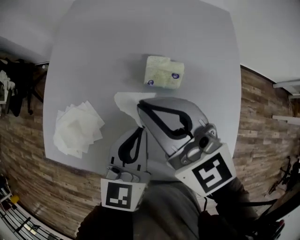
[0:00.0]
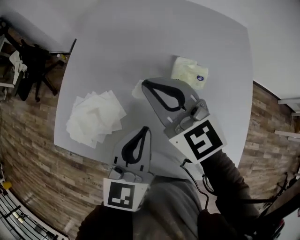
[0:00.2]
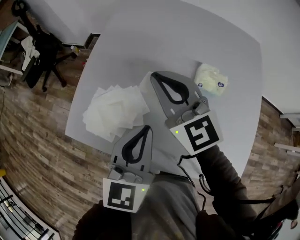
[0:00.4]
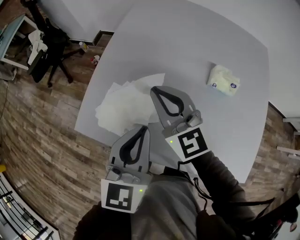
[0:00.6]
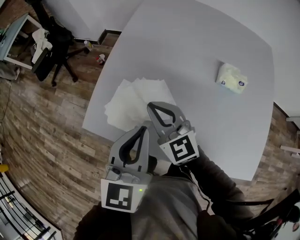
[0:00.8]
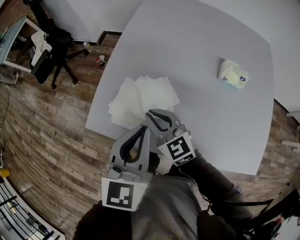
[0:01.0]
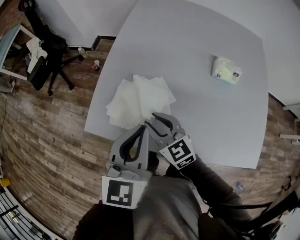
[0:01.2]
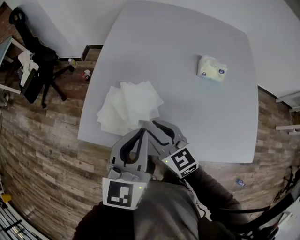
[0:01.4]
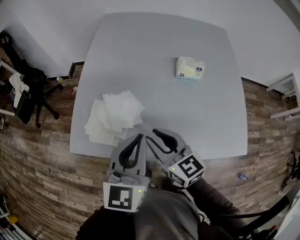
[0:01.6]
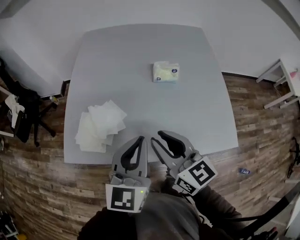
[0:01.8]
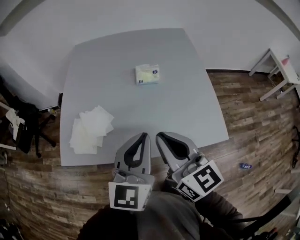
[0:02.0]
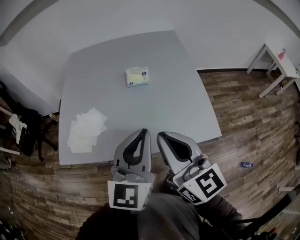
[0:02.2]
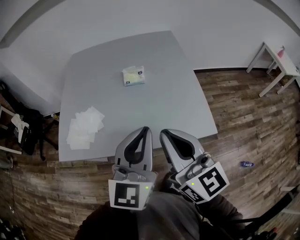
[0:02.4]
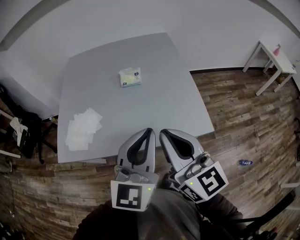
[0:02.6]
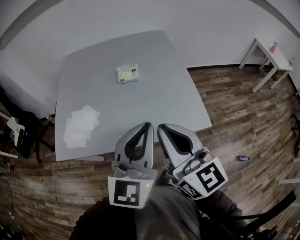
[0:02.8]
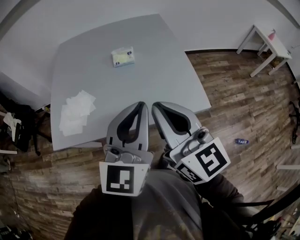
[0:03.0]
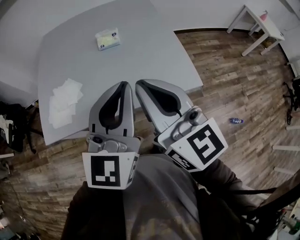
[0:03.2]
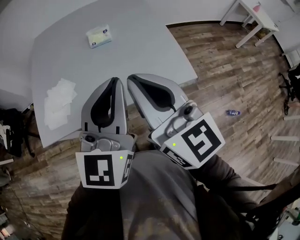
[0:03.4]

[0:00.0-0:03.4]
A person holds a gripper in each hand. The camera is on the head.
0.0 to 1.6 s: The right gripper is displaced to the left, backward and downward by approximately 30 cm, swivels about 30 degrees, and opens. Meanwhile the left gripper moves to the left, about 25 cm.
1.6 to 3.4 s: The two grippers go approximately 35 cm to the right, upward and backward. The left gripper changes its angle by about 20 degrees. The right gripper rotates about 30 degrees, and closes its fingers.

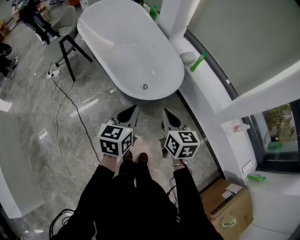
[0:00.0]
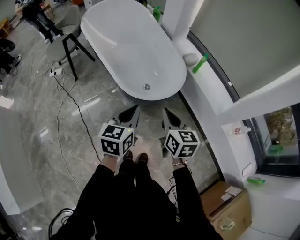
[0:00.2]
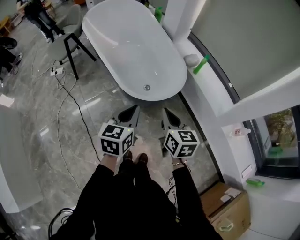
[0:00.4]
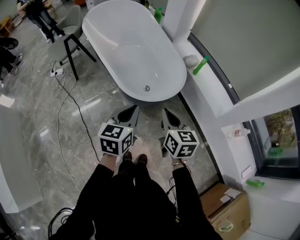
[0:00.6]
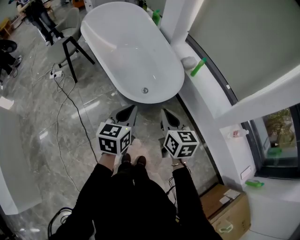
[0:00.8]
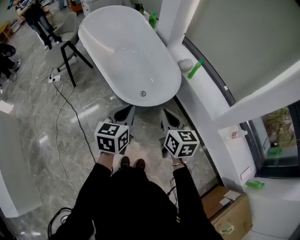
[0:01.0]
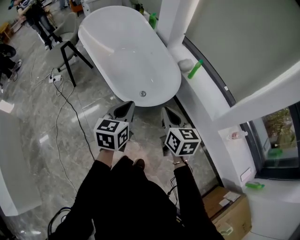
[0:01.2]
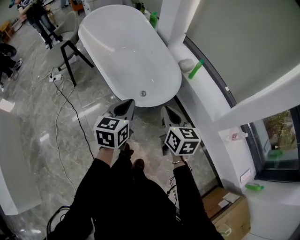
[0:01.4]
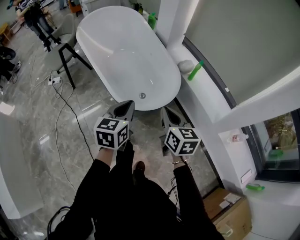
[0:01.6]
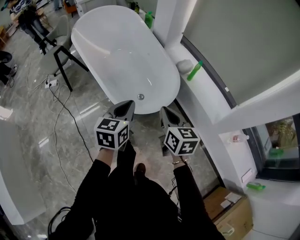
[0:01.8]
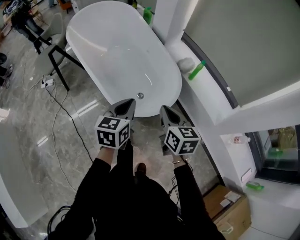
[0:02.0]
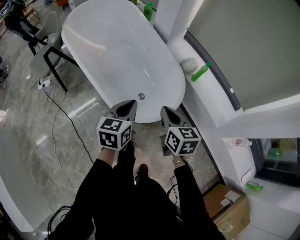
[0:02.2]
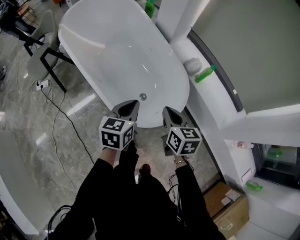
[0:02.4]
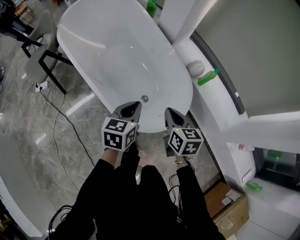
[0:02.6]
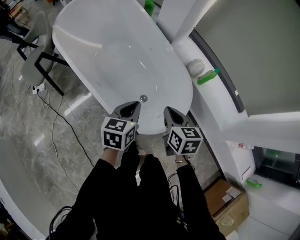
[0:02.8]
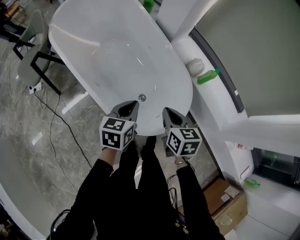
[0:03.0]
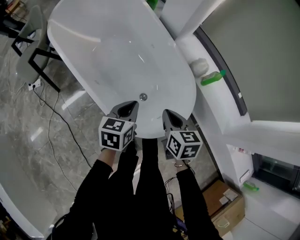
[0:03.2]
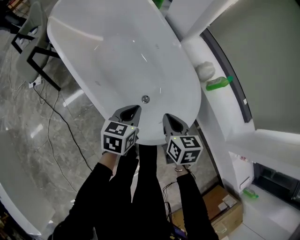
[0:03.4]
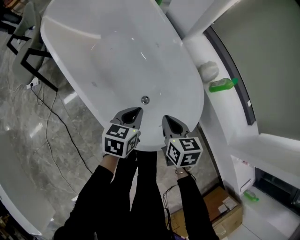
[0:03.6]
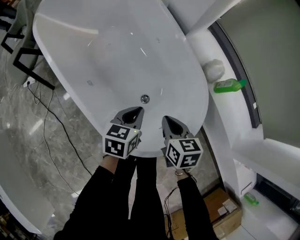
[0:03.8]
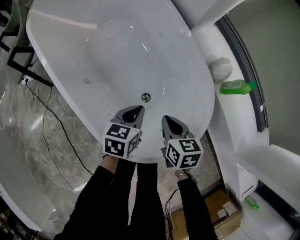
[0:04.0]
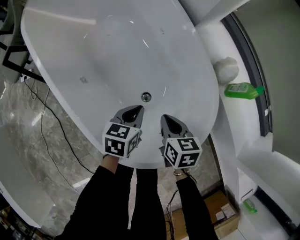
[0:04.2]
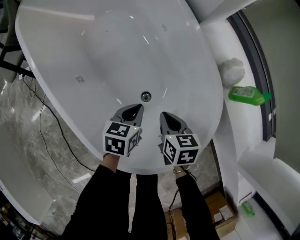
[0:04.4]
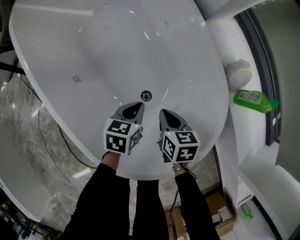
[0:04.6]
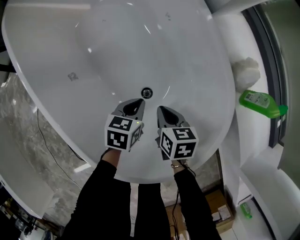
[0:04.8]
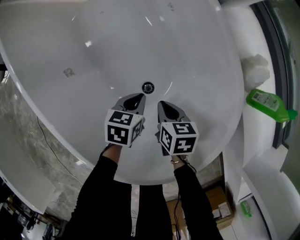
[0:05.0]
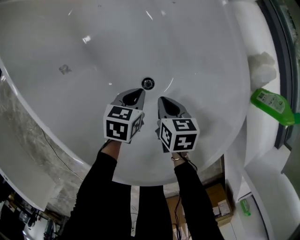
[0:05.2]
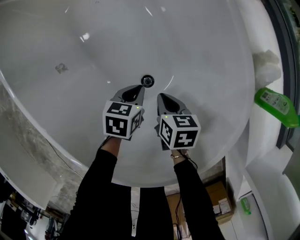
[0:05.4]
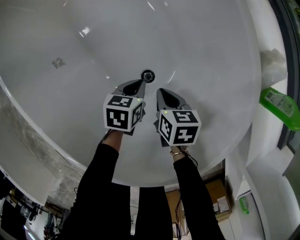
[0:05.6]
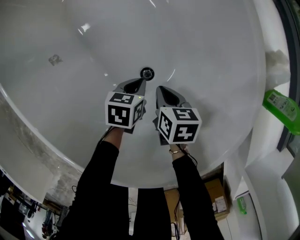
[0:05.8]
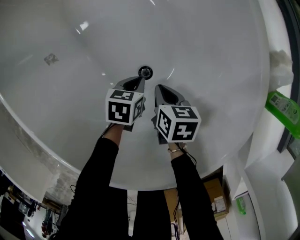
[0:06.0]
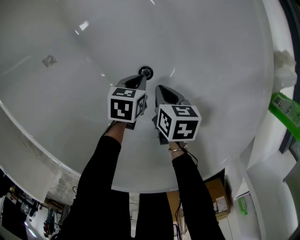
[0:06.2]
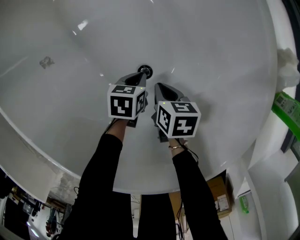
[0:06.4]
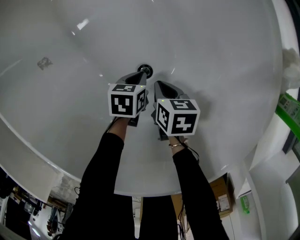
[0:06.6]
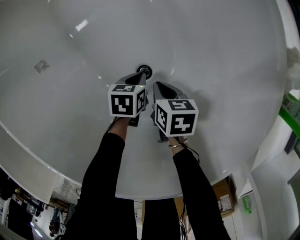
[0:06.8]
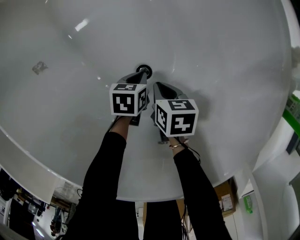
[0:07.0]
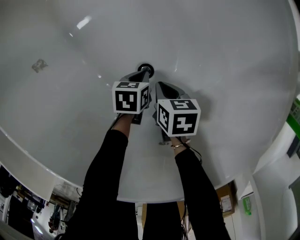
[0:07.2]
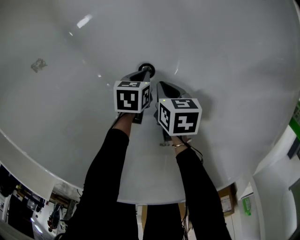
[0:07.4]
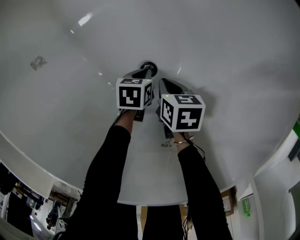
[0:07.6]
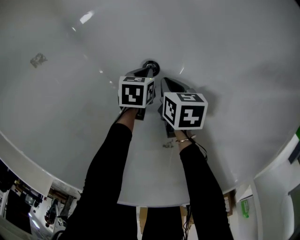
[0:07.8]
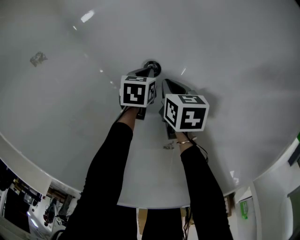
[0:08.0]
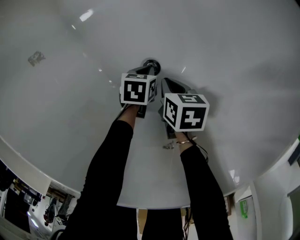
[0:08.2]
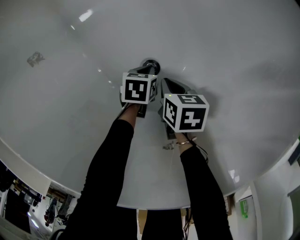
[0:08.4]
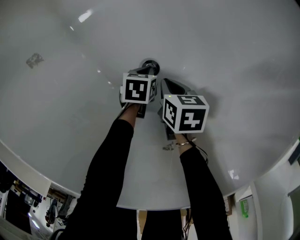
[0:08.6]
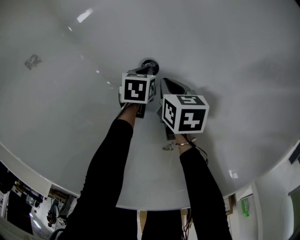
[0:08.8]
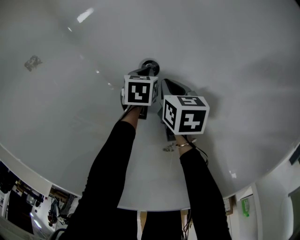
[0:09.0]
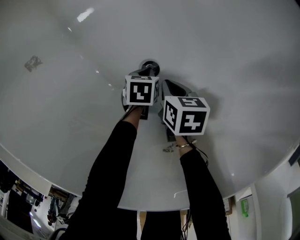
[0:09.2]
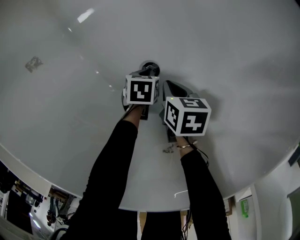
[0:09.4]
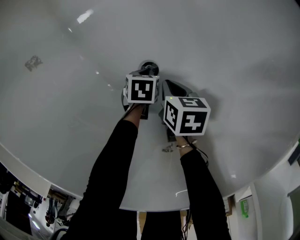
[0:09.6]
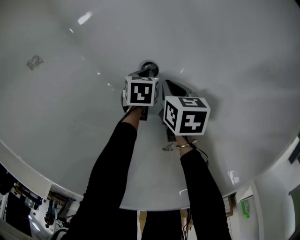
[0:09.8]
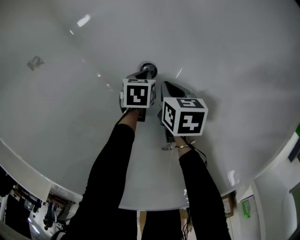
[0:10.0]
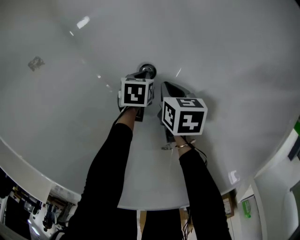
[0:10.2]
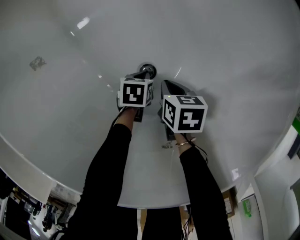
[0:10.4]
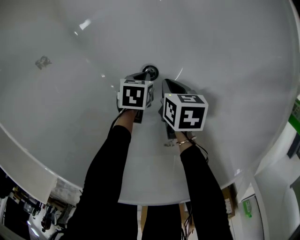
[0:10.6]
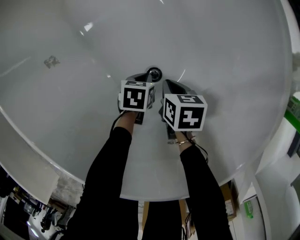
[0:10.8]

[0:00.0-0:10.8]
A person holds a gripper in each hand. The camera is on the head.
0.0 to 1.6 s: The grippers both shift forward by about 5 cm.
1.6 to 3.0 s: The left gripper moves forward and downward, approximately 25 cm. Meanwhile the right gripper is displaced forward, downward and to the left by about 25 cm.
3.0 to 4.6 s: Both grippers travel together downward and forward, some 35 cm. The right gripper turns by approximately 20 degrees.
4.6 to 6.2 s: Both grippers move downward, about 20 cm.
6.2 to 7.8 s: The two grippers go approximately 10 cm downward.
7.8 to 9.2 s: There are only small adjustments of the grippers.
9.2 to 10.8 s: The left gripper moves upward, approximately 5 cm; the right gripper ends up about 5 cm from where it was.

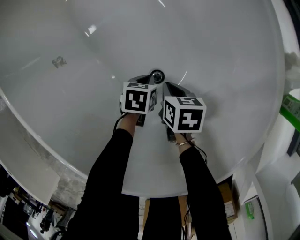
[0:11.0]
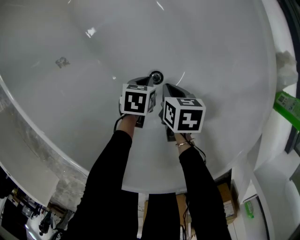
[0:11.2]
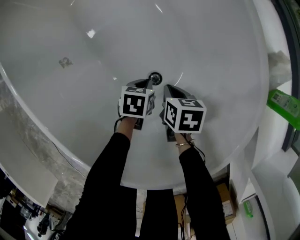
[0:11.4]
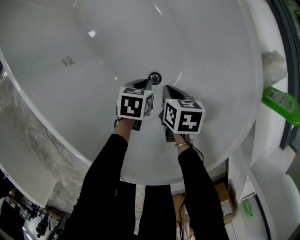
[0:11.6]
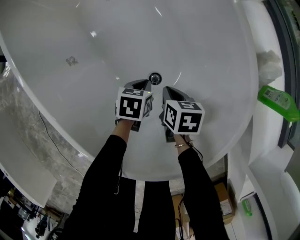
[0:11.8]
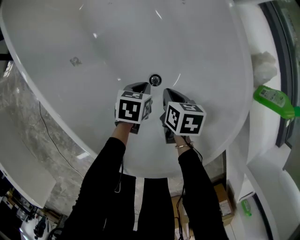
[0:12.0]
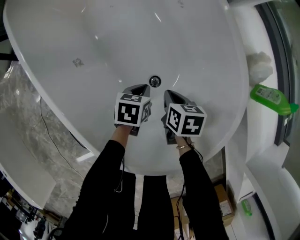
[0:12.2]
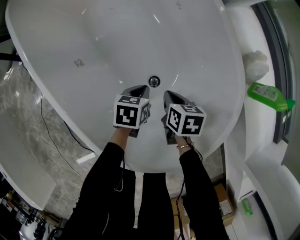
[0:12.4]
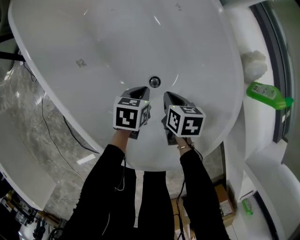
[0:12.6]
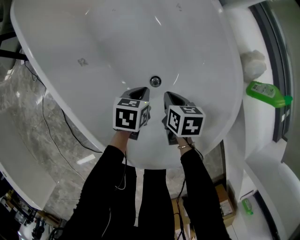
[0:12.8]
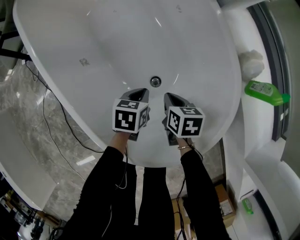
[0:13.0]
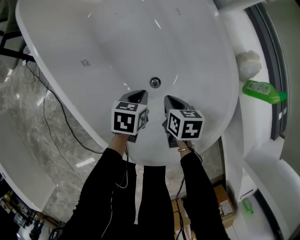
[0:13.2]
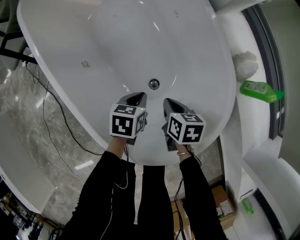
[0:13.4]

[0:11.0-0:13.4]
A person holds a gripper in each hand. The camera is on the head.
11.0 to 12.2 s: The two grippers go some 15 cm upward.
12.2 to 13.4 s: The grippers both shift upward by roughly 5 cm.

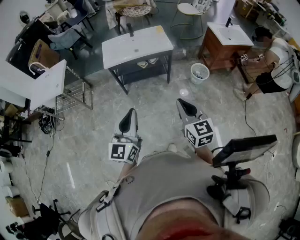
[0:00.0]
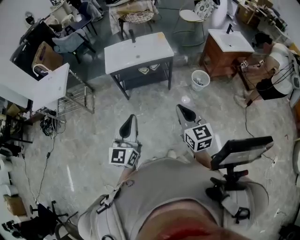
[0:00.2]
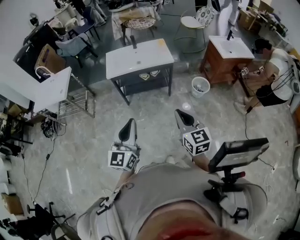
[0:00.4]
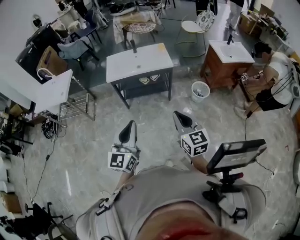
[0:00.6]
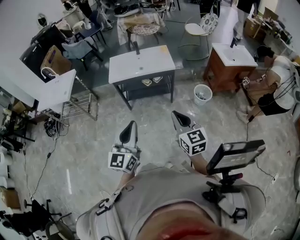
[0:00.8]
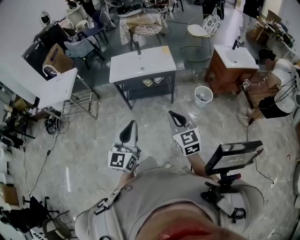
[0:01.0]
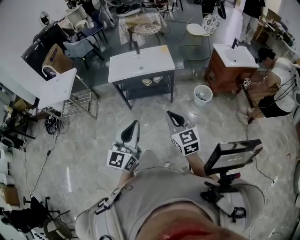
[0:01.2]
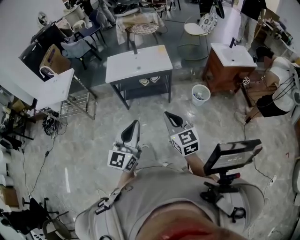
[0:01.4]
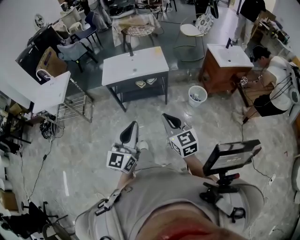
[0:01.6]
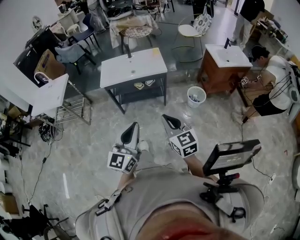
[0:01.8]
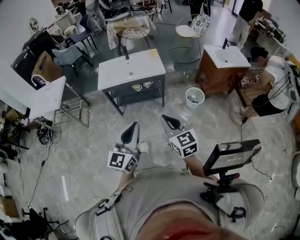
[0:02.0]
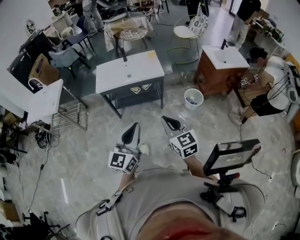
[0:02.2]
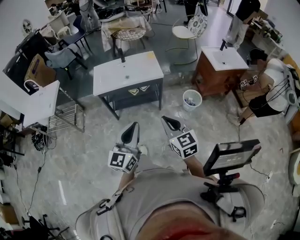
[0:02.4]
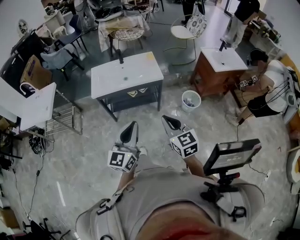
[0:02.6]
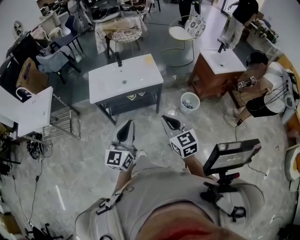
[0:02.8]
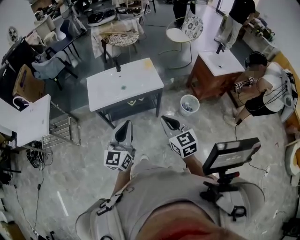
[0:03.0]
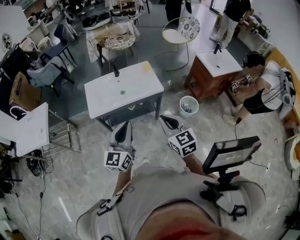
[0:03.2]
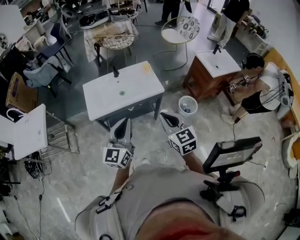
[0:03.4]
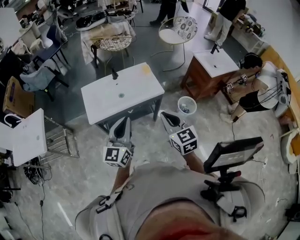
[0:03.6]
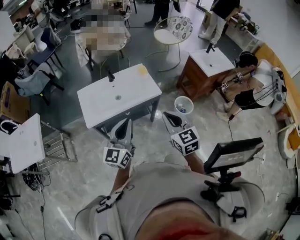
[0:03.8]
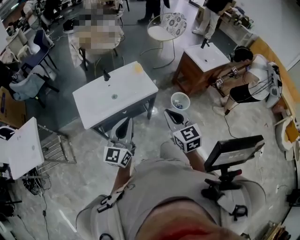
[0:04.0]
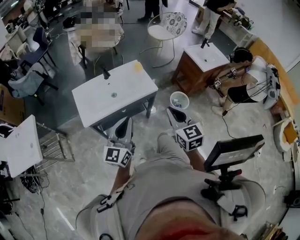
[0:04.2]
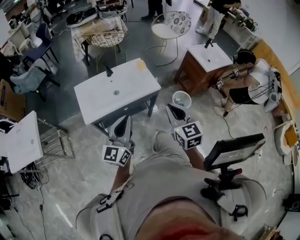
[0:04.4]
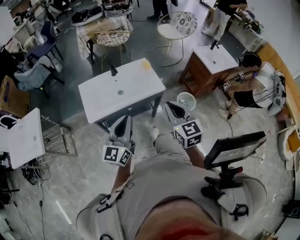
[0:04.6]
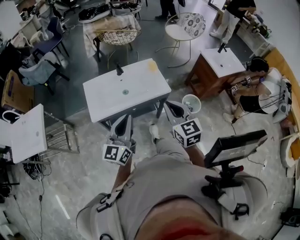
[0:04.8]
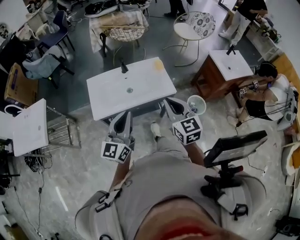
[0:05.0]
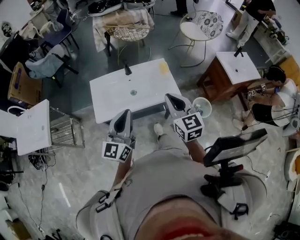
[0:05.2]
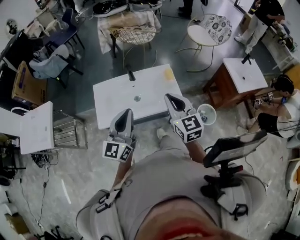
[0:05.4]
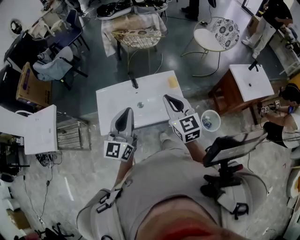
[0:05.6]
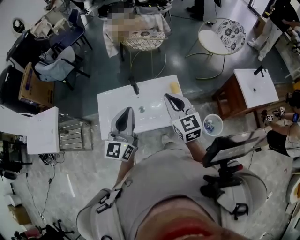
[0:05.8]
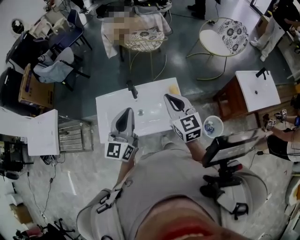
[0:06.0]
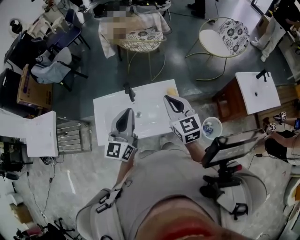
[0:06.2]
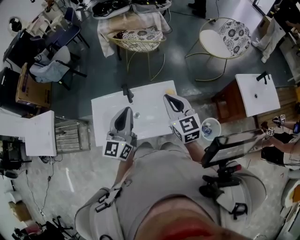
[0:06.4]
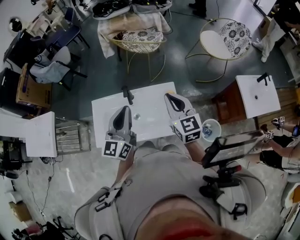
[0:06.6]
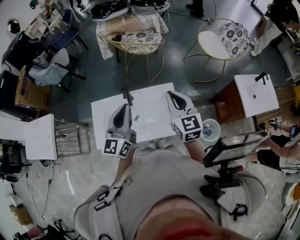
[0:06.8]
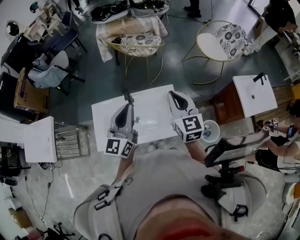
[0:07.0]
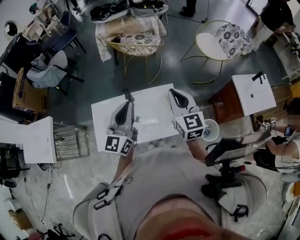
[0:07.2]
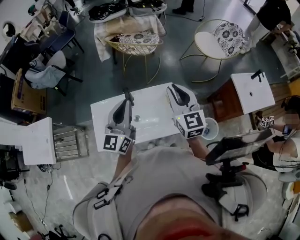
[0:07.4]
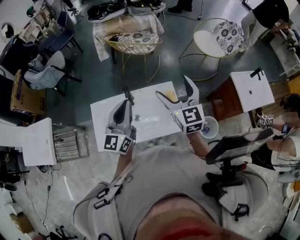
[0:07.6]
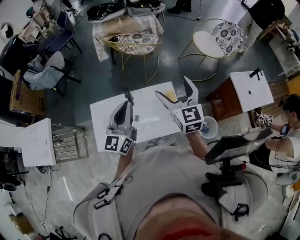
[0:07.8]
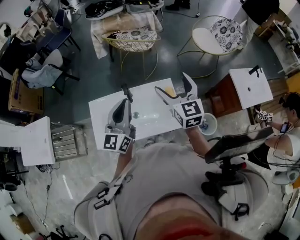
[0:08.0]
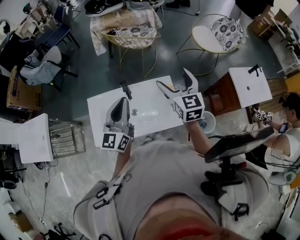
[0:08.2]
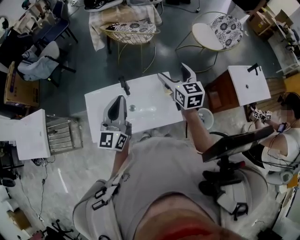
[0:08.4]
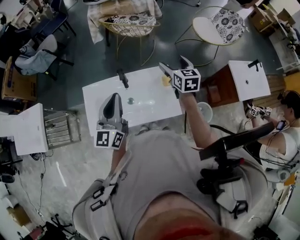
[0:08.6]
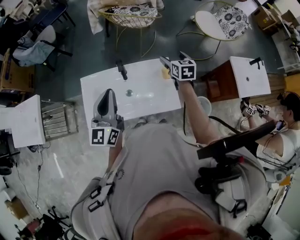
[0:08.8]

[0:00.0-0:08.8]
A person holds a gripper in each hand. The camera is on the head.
0.0 to 1.4 s: The left gripper is displaced to the right by some 10 cm.
1.4 to 3.0 s: Both grippers travel together forward, about 25 cm.
3.0 to 4.4 s: The right gripper shifts some 10 cm forward; the left gripper shifts some 15 cm forward and to the left.
4.4 to 5.8 s: The grippers both shift forward by about 30 cm. The right gripper turns by approximately 20 degrees; the left gripper changes its angle by some 20 degrees.
5.8 to 7.4 s: The grippers both shift forward by roughly 10 cm.
7.4 to 8.8 s: The right gripper is displaced downward and forward by roughly 20 cm, turns by approximately 30 degrees, and opens up. The left gripper travels to the left by roughly 5 cm.
